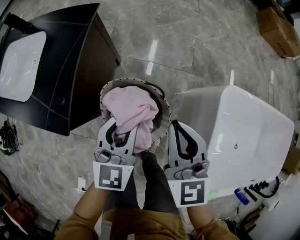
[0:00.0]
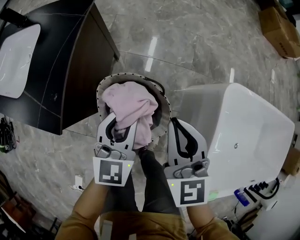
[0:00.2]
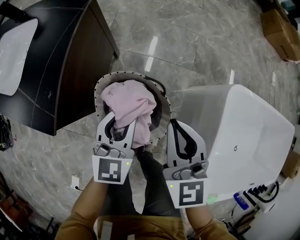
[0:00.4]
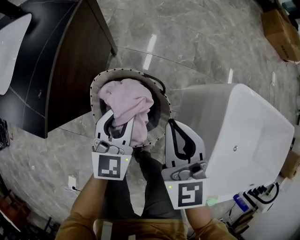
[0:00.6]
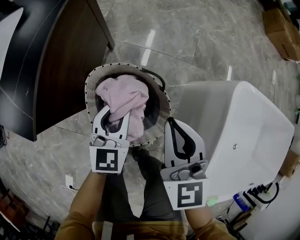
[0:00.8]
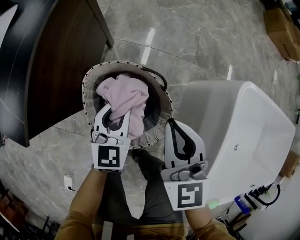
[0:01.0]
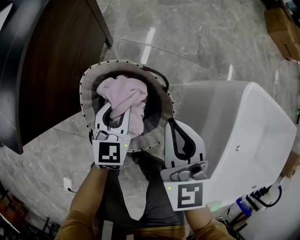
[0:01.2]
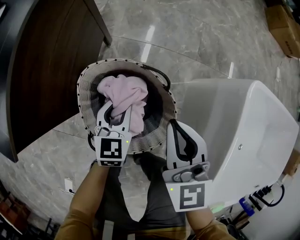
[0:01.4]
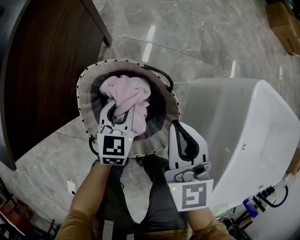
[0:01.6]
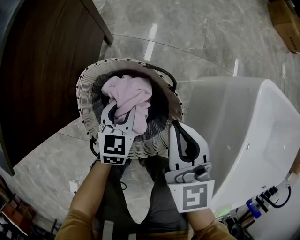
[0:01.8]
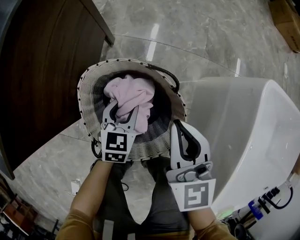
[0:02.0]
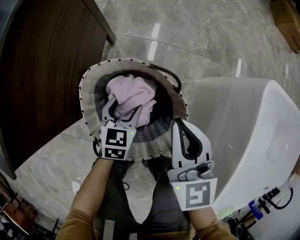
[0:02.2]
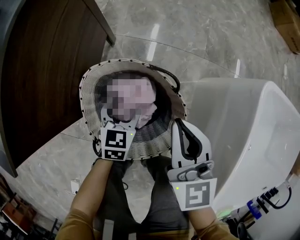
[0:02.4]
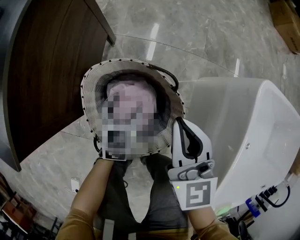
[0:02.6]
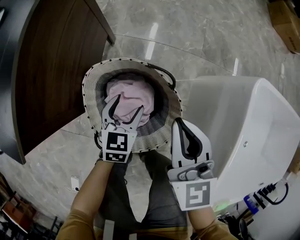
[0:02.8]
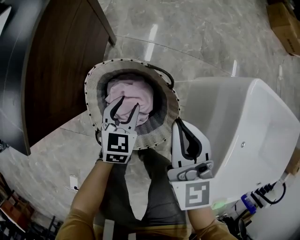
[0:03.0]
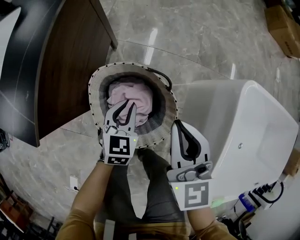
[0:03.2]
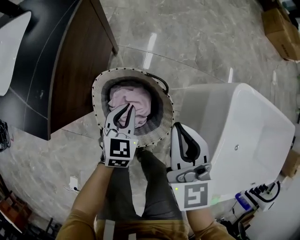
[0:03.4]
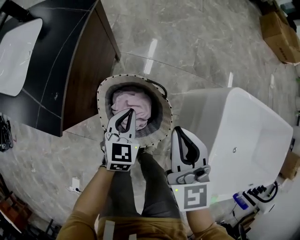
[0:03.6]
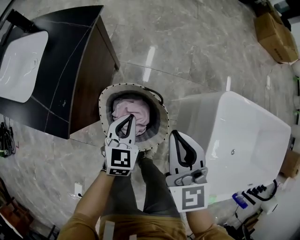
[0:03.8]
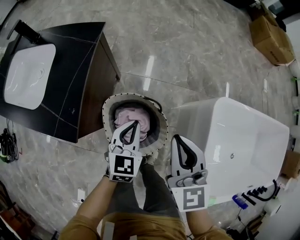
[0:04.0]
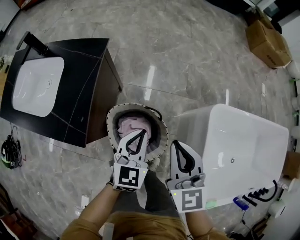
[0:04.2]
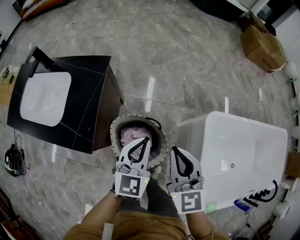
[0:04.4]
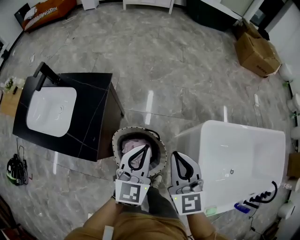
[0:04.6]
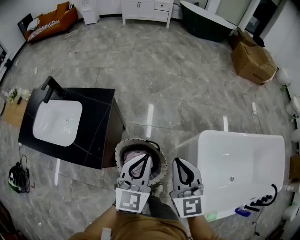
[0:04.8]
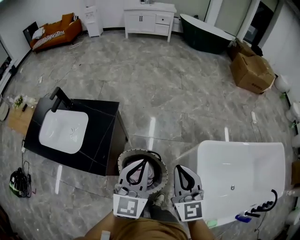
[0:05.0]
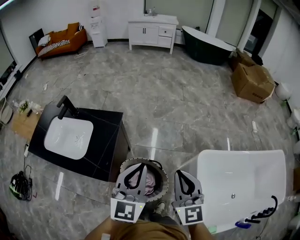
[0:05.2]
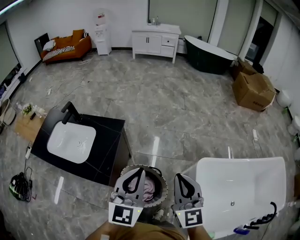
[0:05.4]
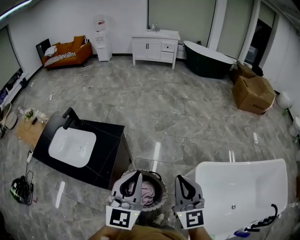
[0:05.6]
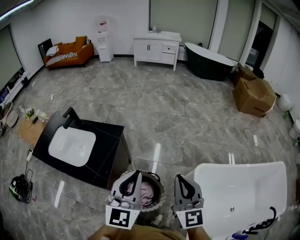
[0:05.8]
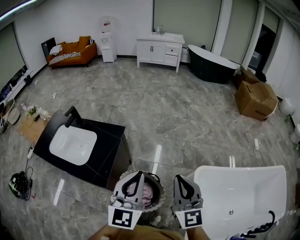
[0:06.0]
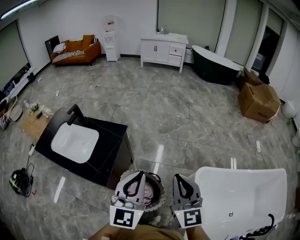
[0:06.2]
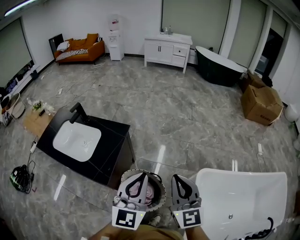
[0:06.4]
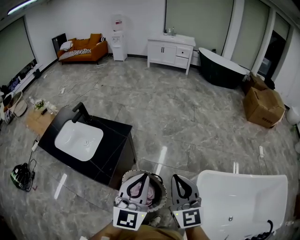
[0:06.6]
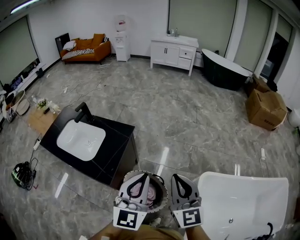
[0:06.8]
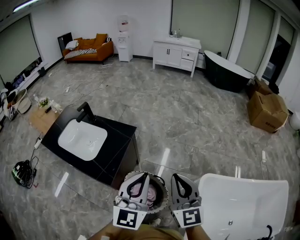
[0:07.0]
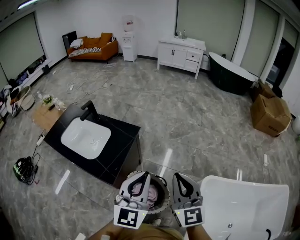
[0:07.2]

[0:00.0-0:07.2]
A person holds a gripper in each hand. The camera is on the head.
0:00.0 to 0:01.4: Both grippers move downward, some 25 cm.
0:01.4 to 0:02.8: The left gripper travels downward and back again, some 10 cm each way, and opens.
0:02.8 to 0:04.4: The two grippers go approximately 35 cm upward. The left gripper changes its angle by about 20 degrees, and closes.
0:04.4 to 0:05.8: The grippers both shift upward by approximately 25 cm.
0:05.8 to 0:07.2: The grippers make only small movements.

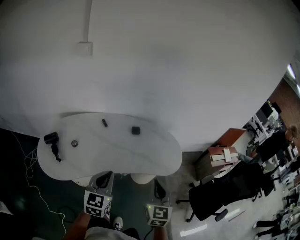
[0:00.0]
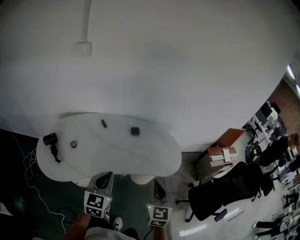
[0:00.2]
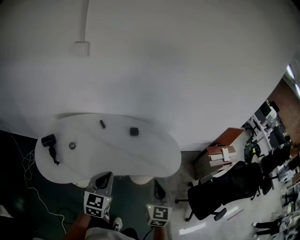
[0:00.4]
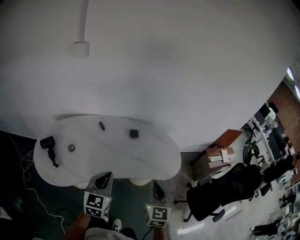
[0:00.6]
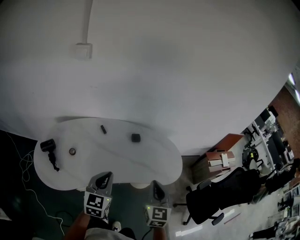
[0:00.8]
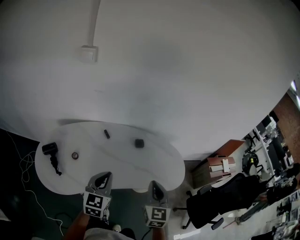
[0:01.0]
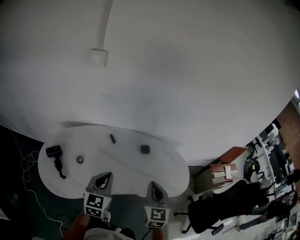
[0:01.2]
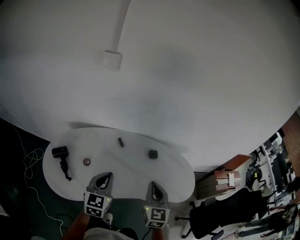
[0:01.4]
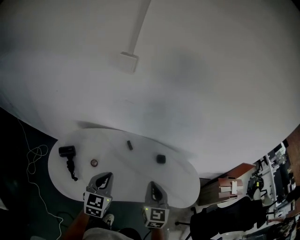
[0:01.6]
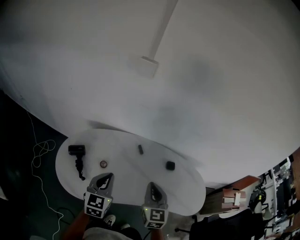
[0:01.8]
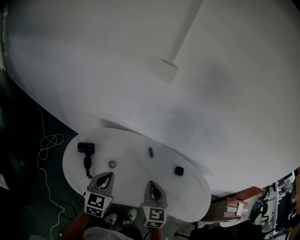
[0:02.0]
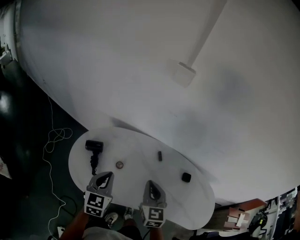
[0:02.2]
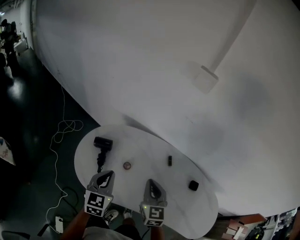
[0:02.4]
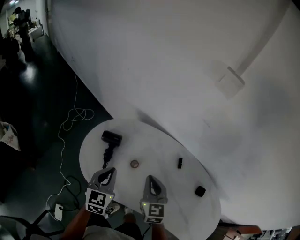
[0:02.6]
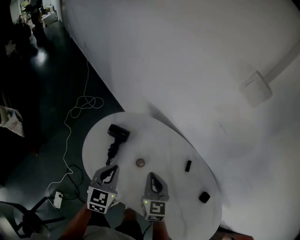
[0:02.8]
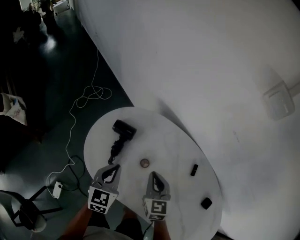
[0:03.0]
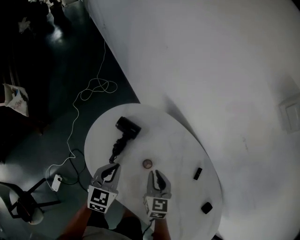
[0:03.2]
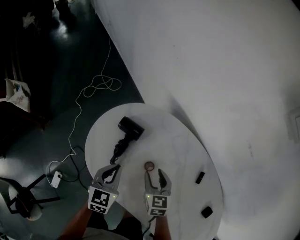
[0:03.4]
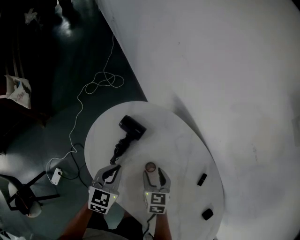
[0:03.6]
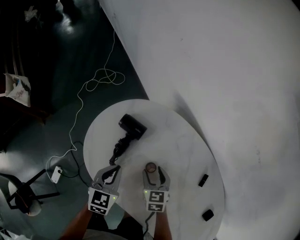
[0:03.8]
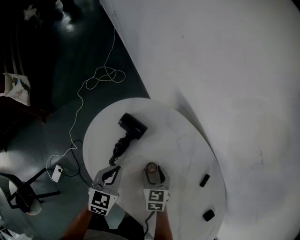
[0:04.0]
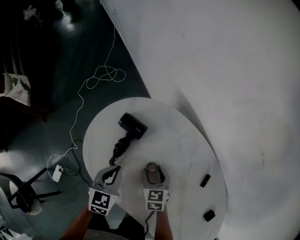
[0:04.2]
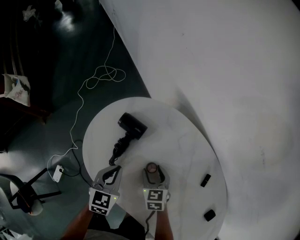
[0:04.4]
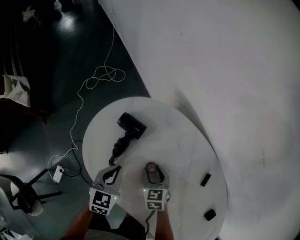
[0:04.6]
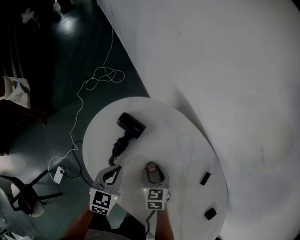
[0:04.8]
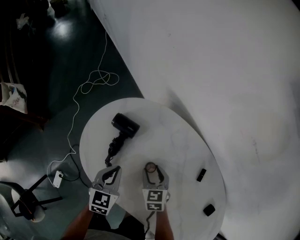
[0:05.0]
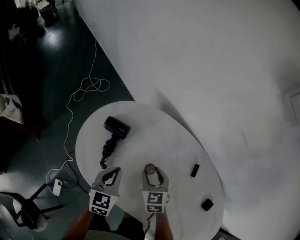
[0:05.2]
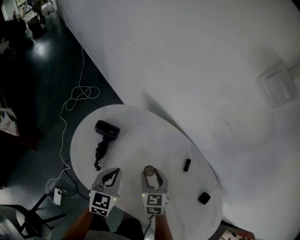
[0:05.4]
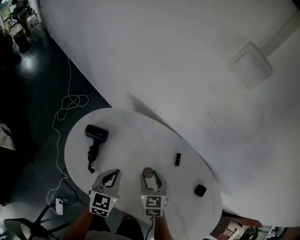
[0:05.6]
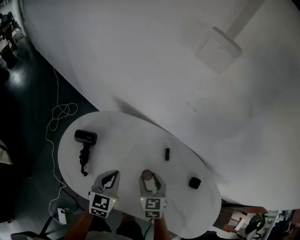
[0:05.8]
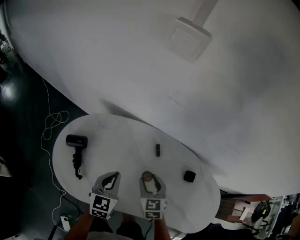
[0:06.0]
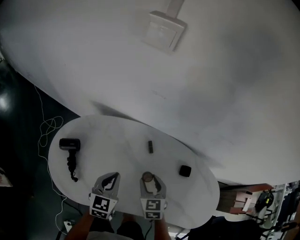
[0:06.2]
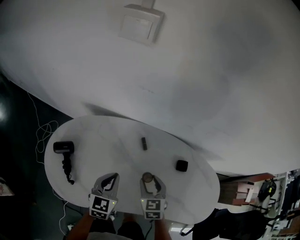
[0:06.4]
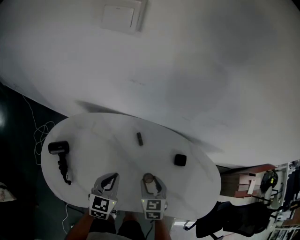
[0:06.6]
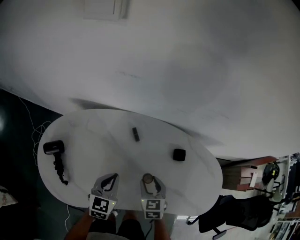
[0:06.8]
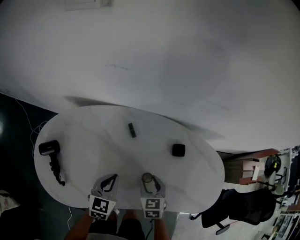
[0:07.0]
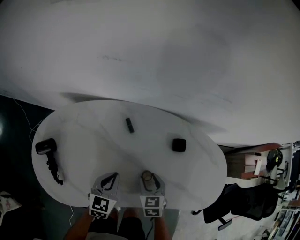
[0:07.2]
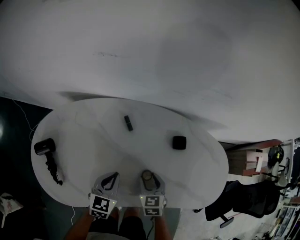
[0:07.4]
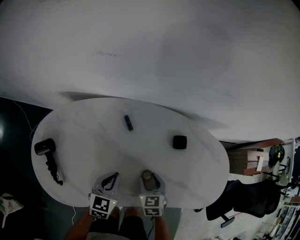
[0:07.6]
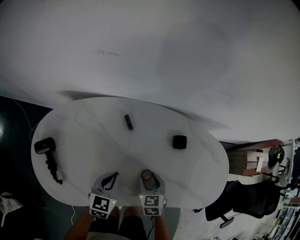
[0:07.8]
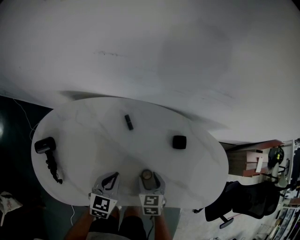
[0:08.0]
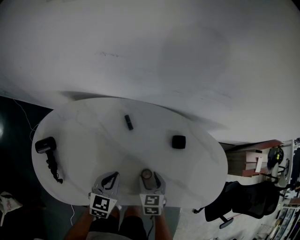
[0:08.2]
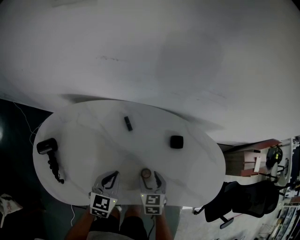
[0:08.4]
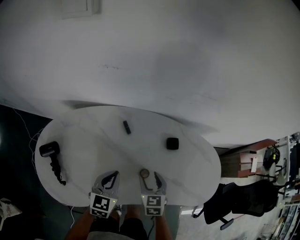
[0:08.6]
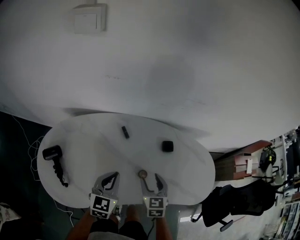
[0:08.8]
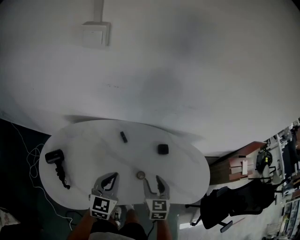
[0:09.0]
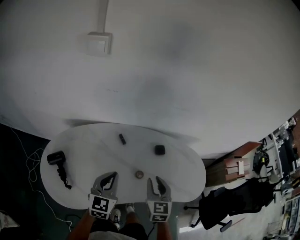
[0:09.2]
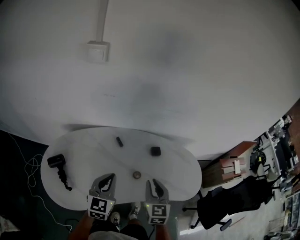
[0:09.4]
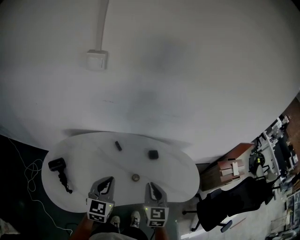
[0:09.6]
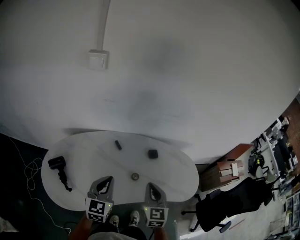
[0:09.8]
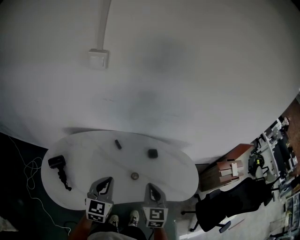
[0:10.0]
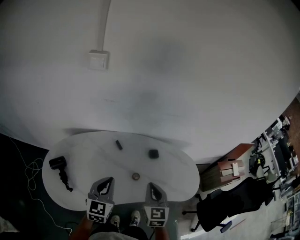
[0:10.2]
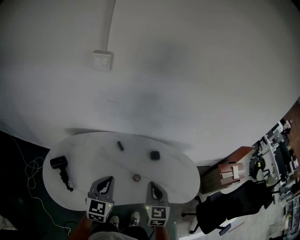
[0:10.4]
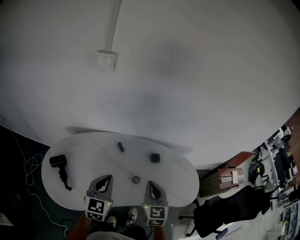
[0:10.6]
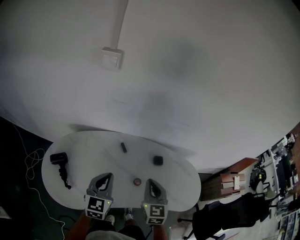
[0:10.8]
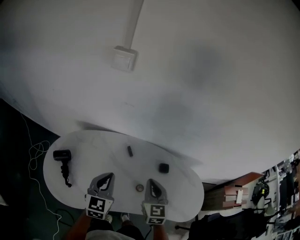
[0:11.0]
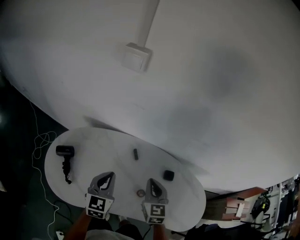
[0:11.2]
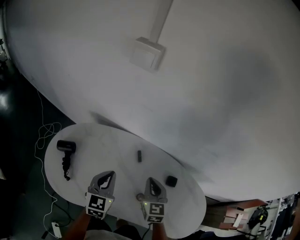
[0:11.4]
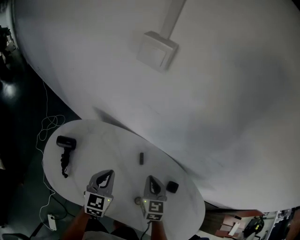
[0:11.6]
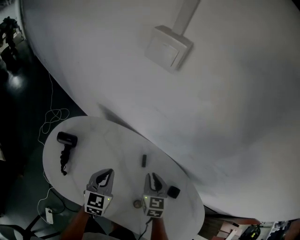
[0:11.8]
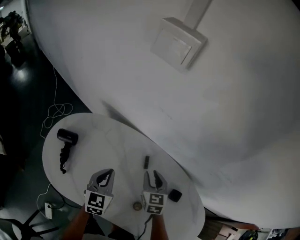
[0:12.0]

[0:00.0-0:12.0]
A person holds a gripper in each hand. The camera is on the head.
0:00.0 to 0:01.6: Both grippers travel together to the left and forward, approximately 25 cm.
0:01.6 to 0:03.0: The left gripper shifts by about 25 cm, and swivels roughly 40 degrees. Meanwhile the right gripper ends up about 35 cm from where it was, and rotates roughly 50 degrees.
0:03.0 to 0:04.4: Both grippers move downward, approximately 15 cm. The right gripper turns by about 20 degrees, and opens.
0:04.4 to 0:06.0: The left gripper changes place by about 20 cm, and changes its angle by roughly 30 degrees. The right gripper moves approximately 25 cm, and swivels roughly 30 degrees.
0:06.0 to 0:07.6: The left gripper shifts some 15 cm to the right and downward, and rotates about 20 degrees. Meanwhile the right gripper moves to the right, downward and backward, some 20 cm, and changes its angle by approximately 20 degrees.
0:07.6 to 0:09.0: The grippers both shift upward by some 15 cm. The right gripper changes its angle by some 20 degrees.
0:09.0 to 0:10.4: Both grippers move upward and backward, approximately 10 cm. The right gripper closes.
0:10.4 to 0:12.0: The right gripper ends up some 35 cm from where it was, changes its angle by some 40 degrees, and opens its fingers. Meanwhile the left gripper moves about 20 cm, and rotates about 40 degrees.

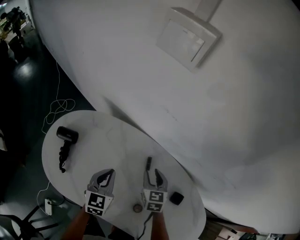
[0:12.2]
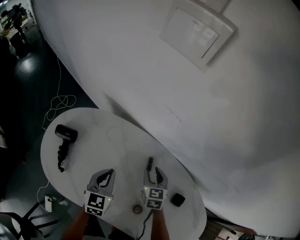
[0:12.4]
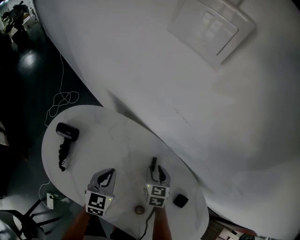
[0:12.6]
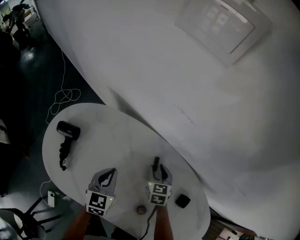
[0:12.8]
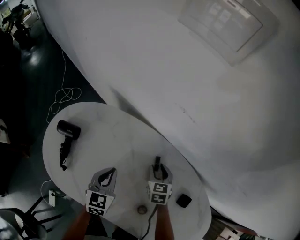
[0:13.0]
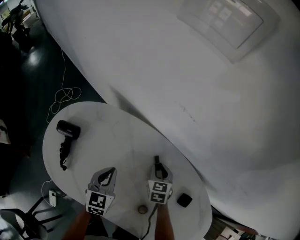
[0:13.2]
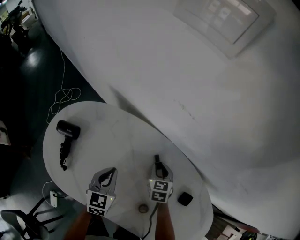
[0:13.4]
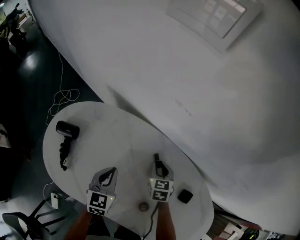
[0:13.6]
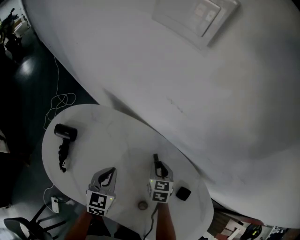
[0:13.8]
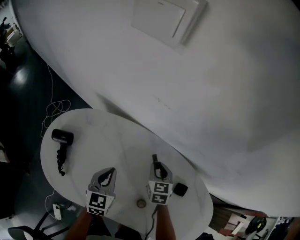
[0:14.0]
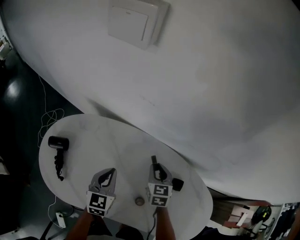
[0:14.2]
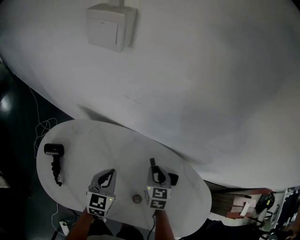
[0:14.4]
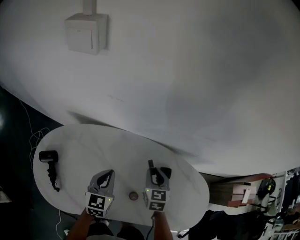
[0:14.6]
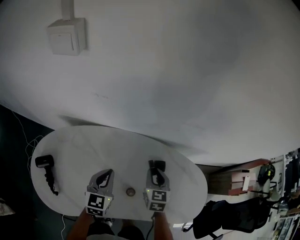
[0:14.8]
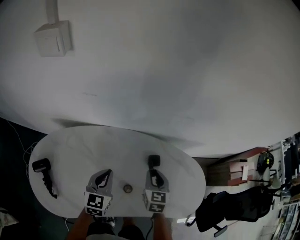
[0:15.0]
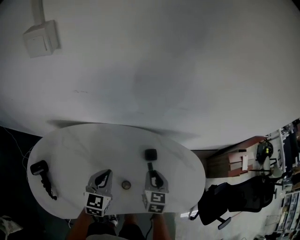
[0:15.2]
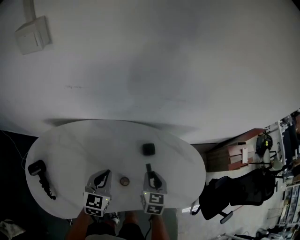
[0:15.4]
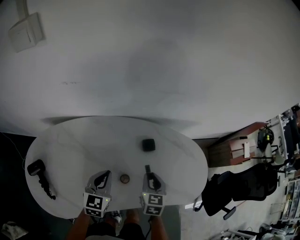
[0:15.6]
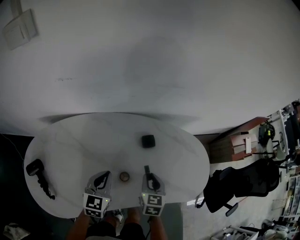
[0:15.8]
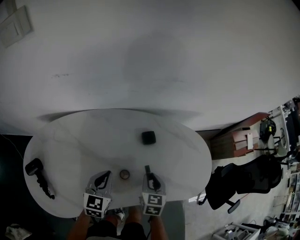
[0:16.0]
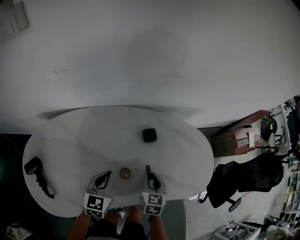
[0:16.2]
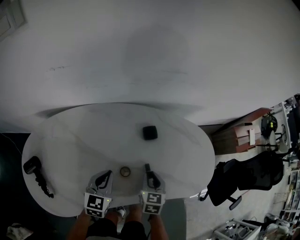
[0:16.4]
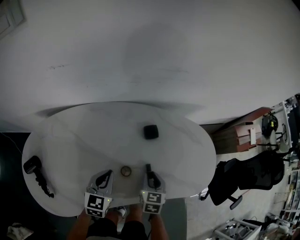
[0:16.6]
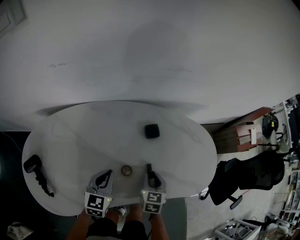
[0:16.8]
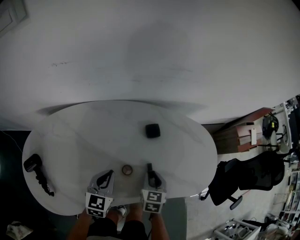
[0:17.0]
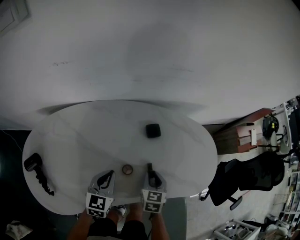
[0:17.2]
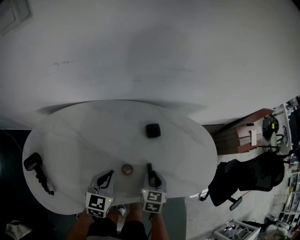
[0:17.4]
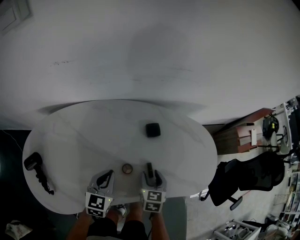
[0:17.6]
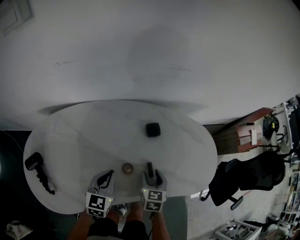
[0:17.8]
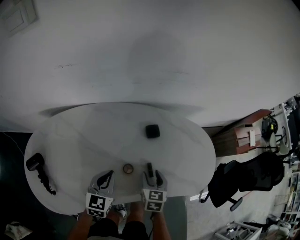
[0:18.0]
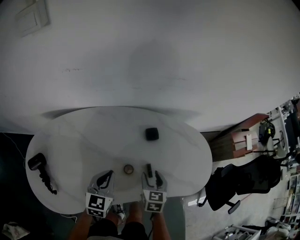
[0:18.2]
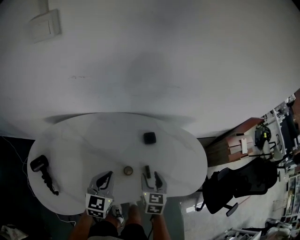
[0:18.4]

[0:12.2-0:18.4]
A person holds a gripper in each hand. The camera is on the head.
0:13.8 to 0:15.4: The right gripper ends up roughly 30 cm from where it was, and swivels about 40 degrees, while the left gripper shifts by about 15 cm, and rotates roughly 40 degrees.
0:15.4 to 0:16.8: The left gripper is displaced downward by approximately 10 cm. Meanwhile the right gripper heads downward and backward, covering approximately 10 cm.
0:16.8 to 0:18.4: The two grippers go about 10 cm upward. The right gripper opens.
